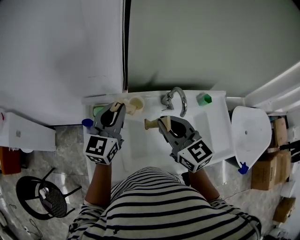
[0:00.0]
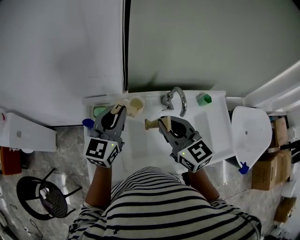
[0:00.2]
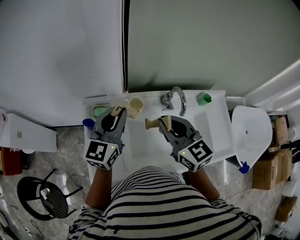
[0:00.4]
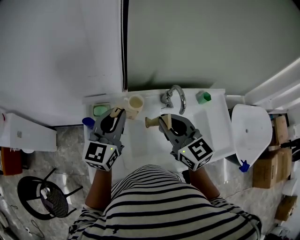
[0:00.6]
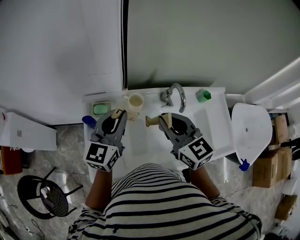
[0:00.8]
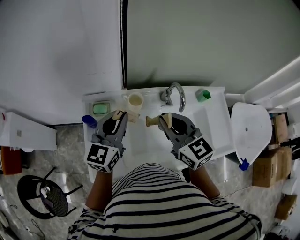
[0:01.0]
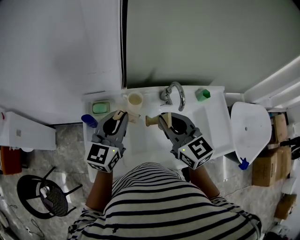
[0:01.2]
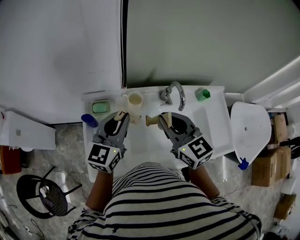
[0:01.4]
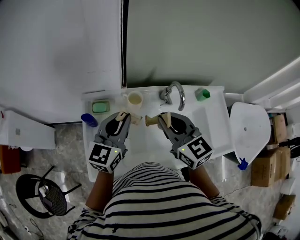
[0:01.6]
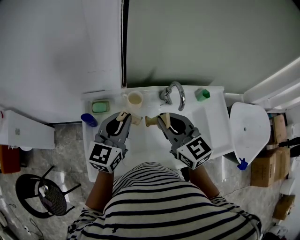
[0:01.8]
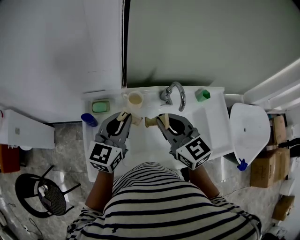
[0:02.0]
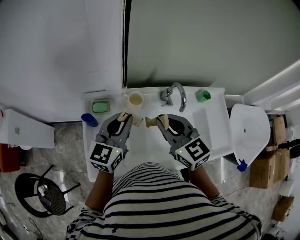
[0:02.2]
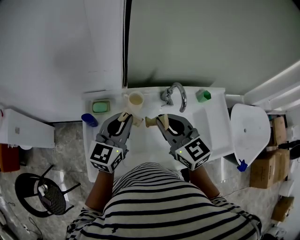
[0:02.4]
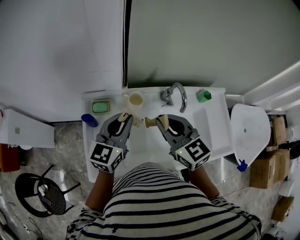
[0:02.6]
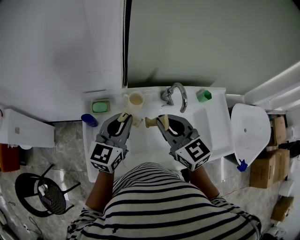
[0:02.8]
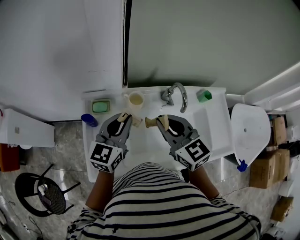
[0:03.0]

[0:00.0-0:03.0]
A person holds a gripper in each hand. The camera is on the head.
0:00.0 to 0:01.6: The left gripper is displaced backward by about 5 cm.
0:01.6 to 0:03.0: The grippers stay close to where they were, moving slightly.

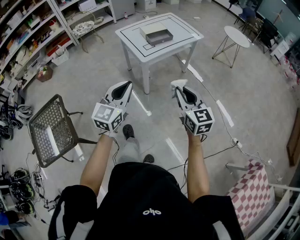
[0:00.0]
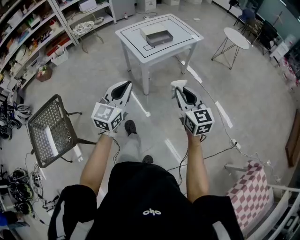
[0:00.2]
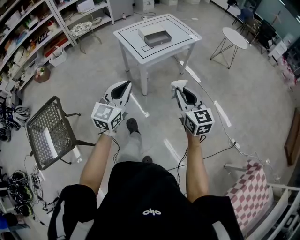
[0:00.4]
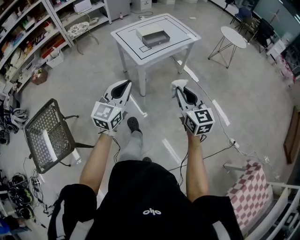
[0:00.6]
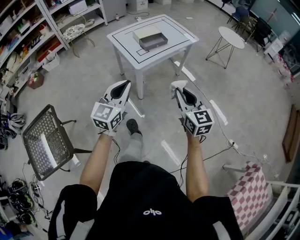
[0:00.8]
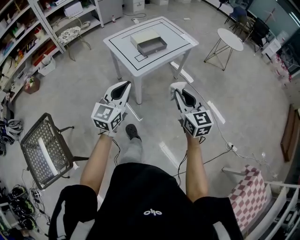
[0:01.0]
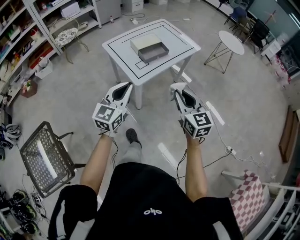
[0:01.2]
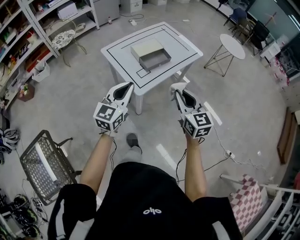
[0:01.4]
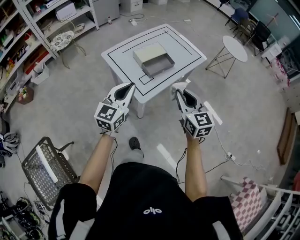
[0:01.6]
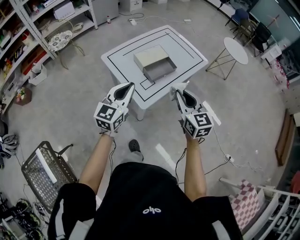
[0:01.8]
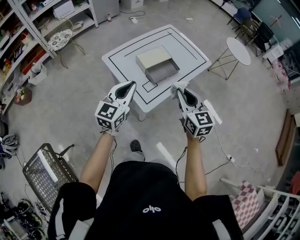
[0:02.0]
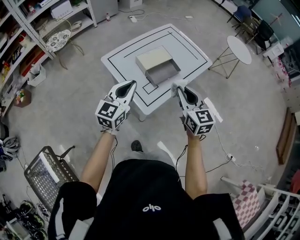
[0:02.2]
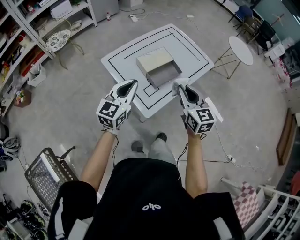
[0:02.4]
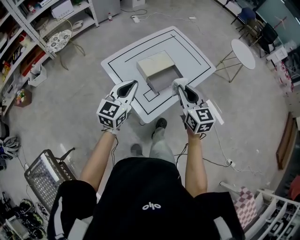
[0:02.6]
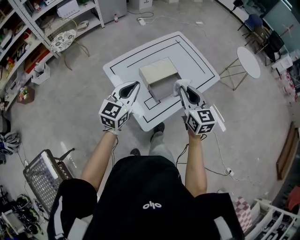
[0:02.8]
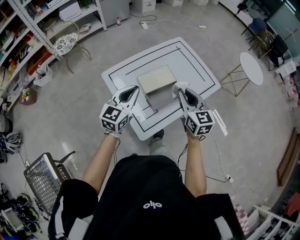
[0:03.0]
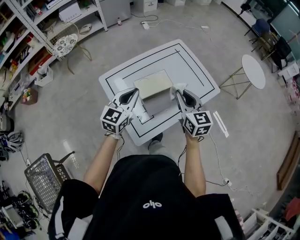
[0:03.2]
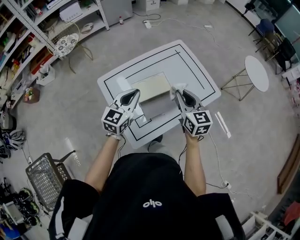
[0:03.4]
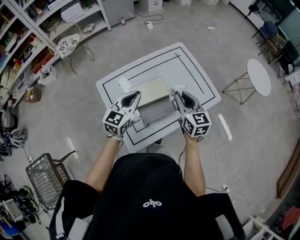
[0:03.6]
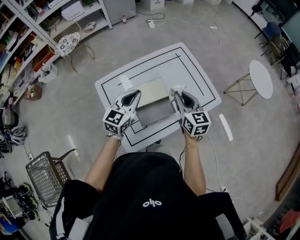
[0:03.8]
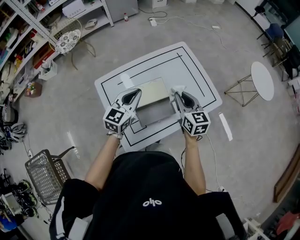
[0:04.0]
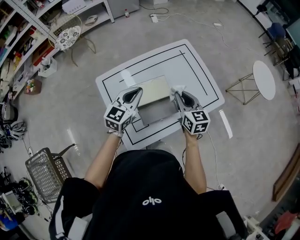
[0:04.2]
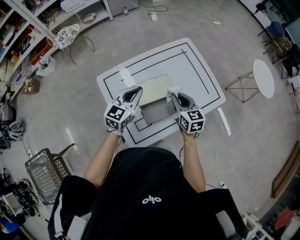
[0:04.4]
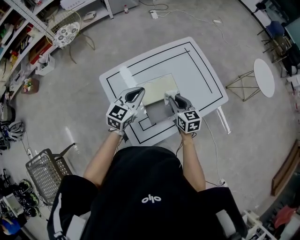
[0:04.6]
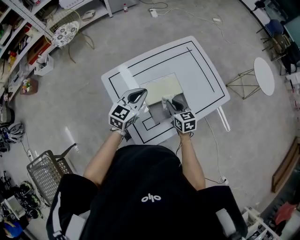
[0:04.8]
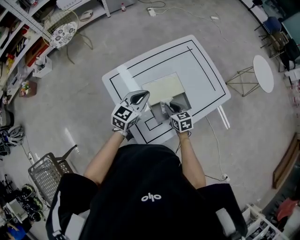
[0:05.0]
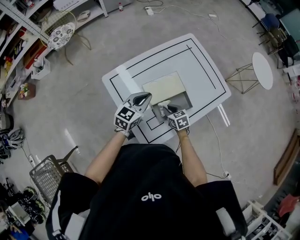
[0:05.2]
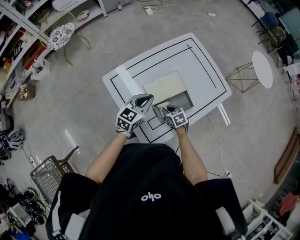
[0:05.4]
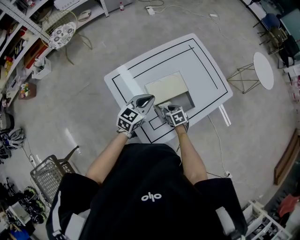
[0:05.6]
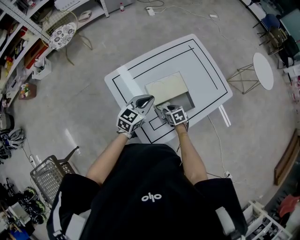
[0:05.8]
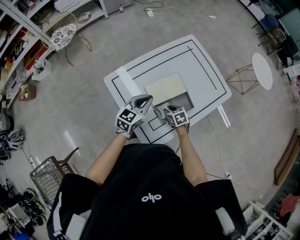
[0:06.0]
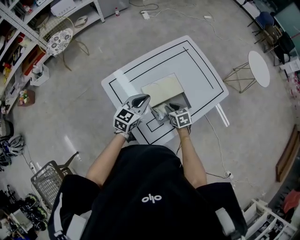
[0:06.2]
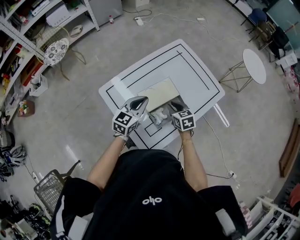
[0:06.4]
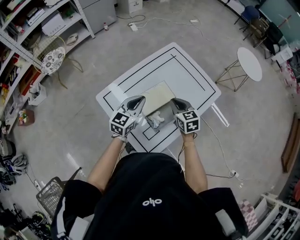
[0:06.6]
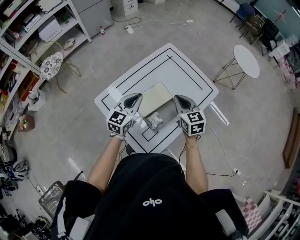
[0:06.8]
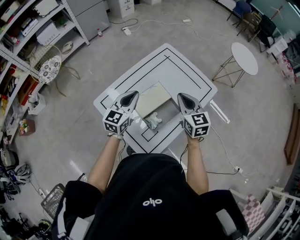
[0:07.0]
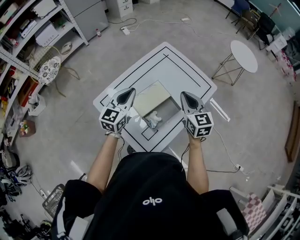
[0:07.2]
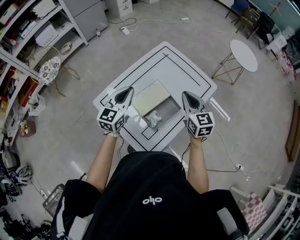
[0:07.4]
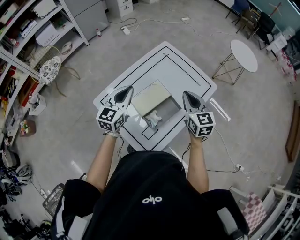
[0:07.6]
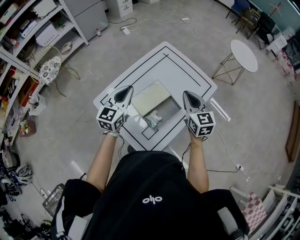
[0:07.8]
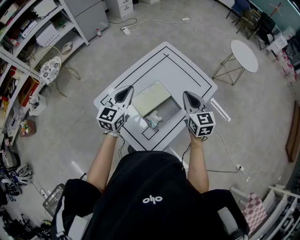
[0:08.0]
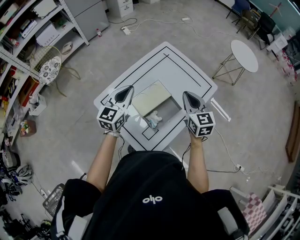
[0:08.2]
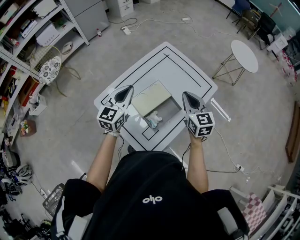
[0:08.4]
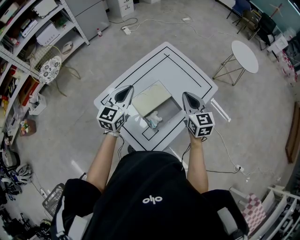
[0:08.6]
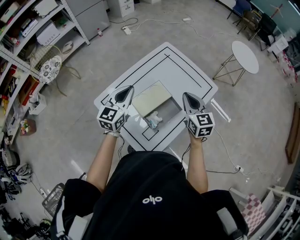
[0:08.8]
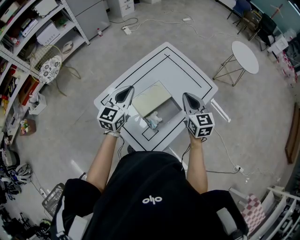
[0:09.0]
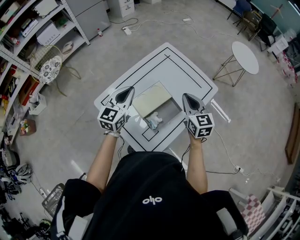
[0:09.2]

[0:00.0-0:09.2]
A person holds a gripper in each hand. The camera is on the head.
0:00.0 to 0:01.6: The grippers both shift forward by some 40 cm.
0:01.6 to 0:03.0: Both grippers move forward, roughly 30 cm.
0:03.0 to 0:04.6: The right gripper is displaced downward and forward by about 20 cm. Meanwhile the left gripper goes about 15 cm forward and downward.
0:04.6 to 0:06.2: The left gripper ends up roughly 5 cm from where it was. The right gripper heads downward, covering approximately 10 cm, and rotates roughly 20 degrees.
0:06.2 to 0:07.6: The right gripper shifts about 30 cm upward and to the right, tilts its fingers some 30 degrees upward, and closes, while the left gripper heads upward, covering roughly 10 cm.
0:07.6 to 0:09.2: The grippers stay close to where they were, moving slightly.

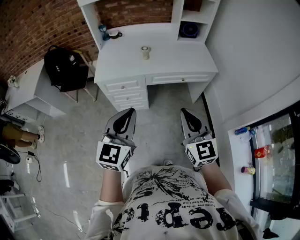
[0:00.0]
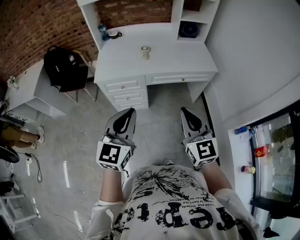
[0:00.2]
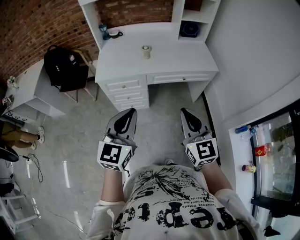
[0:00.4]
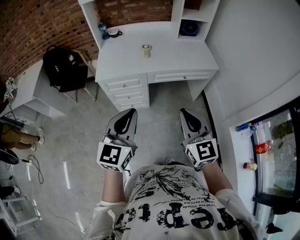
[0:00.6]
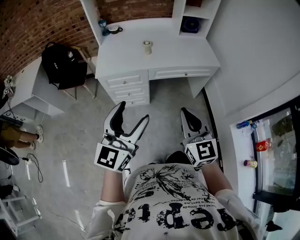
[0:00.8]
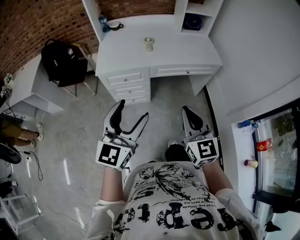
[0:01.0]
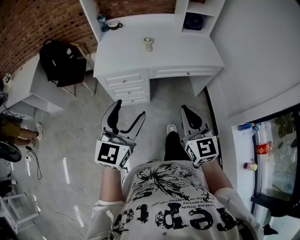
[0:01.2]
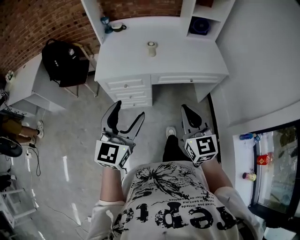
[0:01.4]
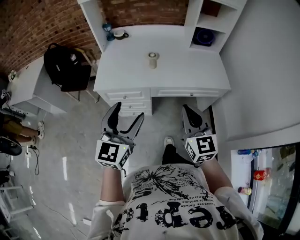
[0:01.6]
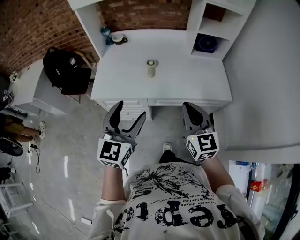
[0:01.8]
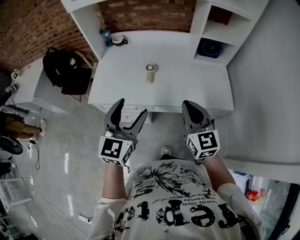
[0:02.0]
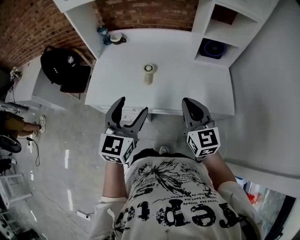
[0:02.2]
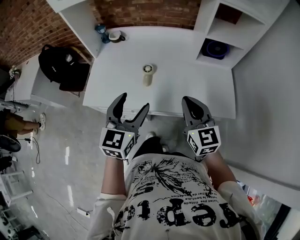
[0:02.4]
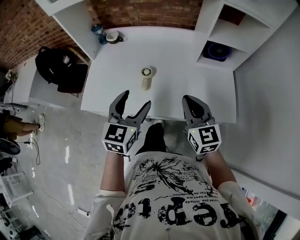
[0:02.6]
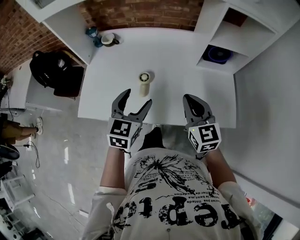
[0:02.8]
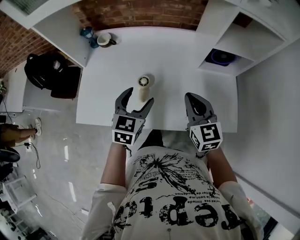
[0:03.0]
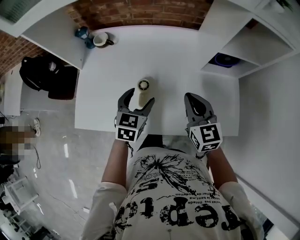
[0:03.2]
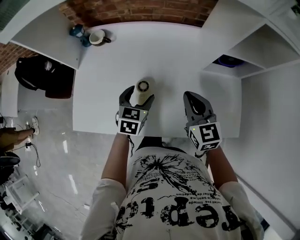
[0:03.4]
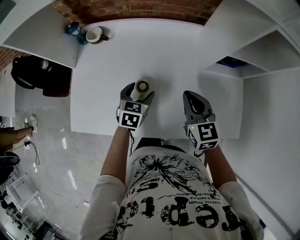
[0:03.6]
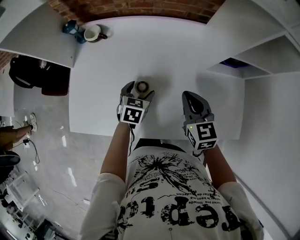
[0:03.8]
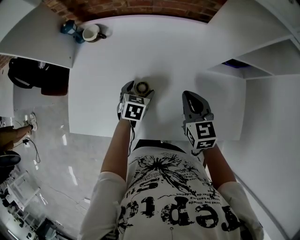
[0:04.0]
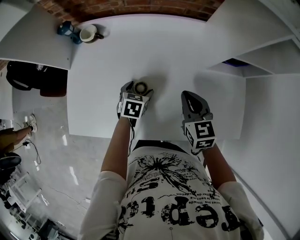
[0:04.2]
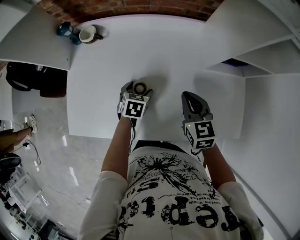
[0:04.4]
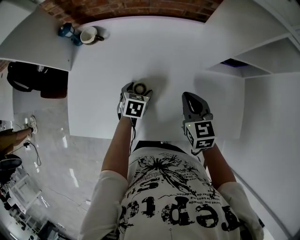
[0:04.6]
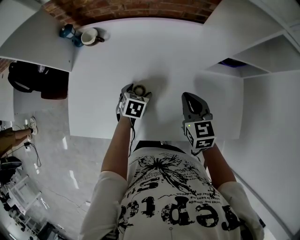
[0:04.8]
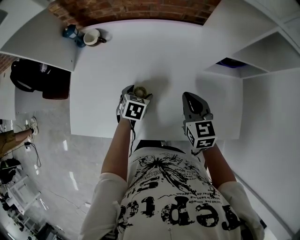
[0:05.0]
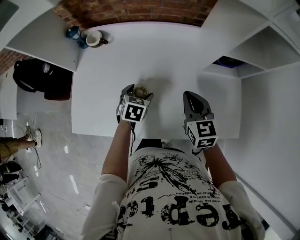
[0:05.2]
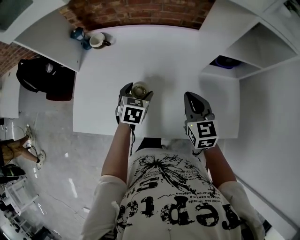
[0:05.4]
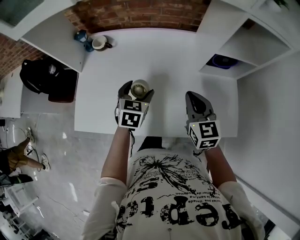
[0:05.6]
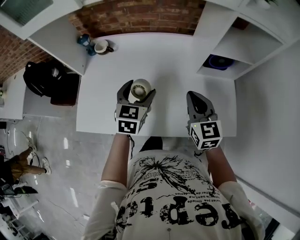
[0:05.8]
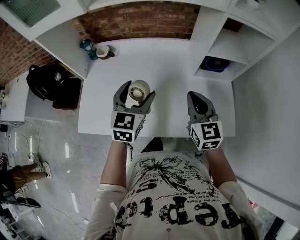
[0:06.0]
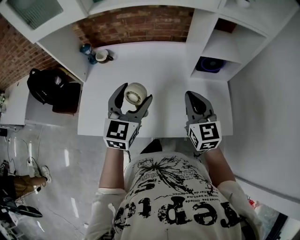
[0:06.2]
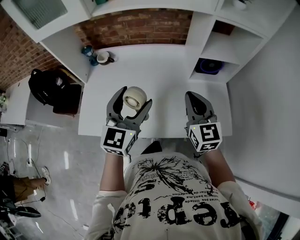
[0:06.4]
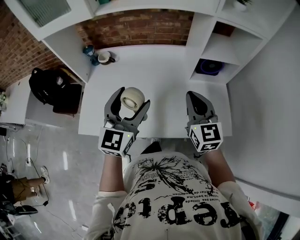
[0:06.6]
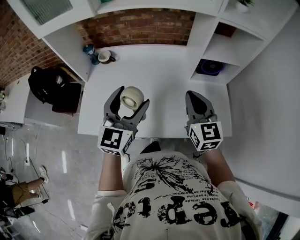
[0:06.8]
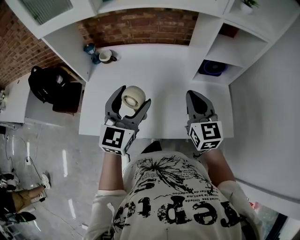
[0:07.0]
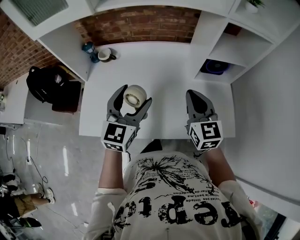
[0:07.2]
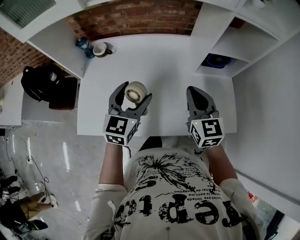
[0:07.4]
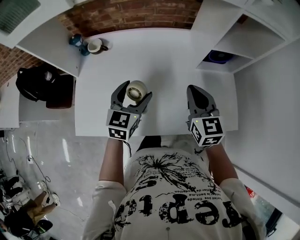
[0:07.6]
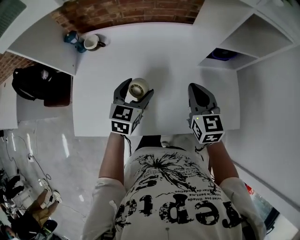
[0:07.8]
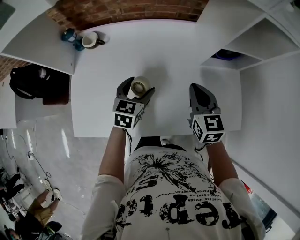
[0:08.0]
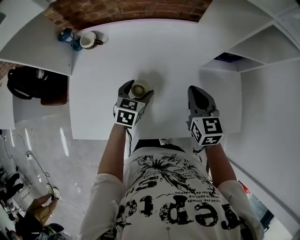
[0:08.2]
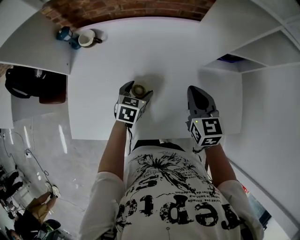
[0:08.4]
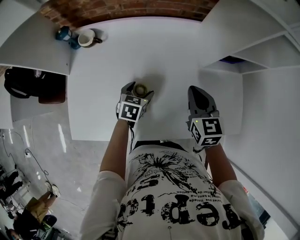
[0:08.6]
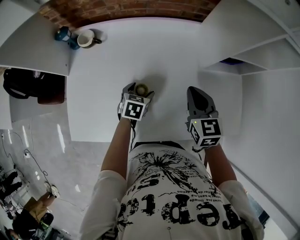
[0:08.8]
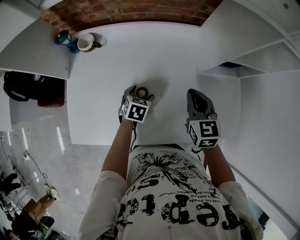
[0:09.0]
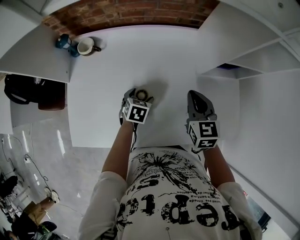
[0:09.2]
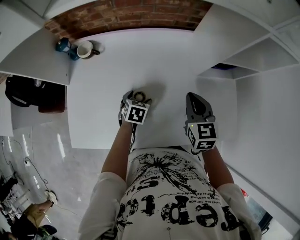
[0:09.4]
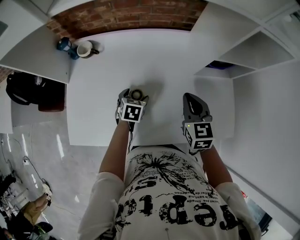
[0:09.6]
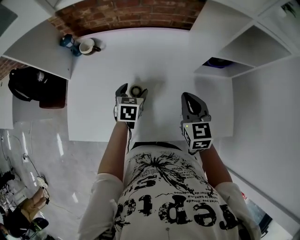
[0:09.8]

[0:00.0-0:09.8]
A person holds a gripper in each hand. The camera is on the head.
0:00.0 to 0:01.4: The right gripper is displaced forward and downward by some 10 cm. The left gripper heads forward, covering about 10 cm, and opens up.
0:01.4 to 0:02.8: The two grippers travel together, forward, about 50 cm.
0:02.8 to 0:04.2: The left gripper heads downward and forward, covering some 35 cm, and angles its fingers downward, by about 30 degrees, while the right gripper is displaced forward and downward by some 25 cm.
0:04.2 to 0:05.6: The left gripper goes roughly 15 cm upward; the right gripper travels upward and backward by some 10 cm.
0:05.6 to 0:07.0: The left gripper shifts about 20 cm upward and backward, and points its fingers approximately 30 degrees further upward. The right gripper travels upward and backward by roughly 10 cm.
0:07.0 to 0:08.4: The left gripper is displaced downward and forward by approximately 35 cm, and angles its fingers downward, by approximately 40 degrees, while the right gripper is displaced downward and forward by roughly 20 cm.
0:08.4 to 0:09.8: The grippers move only a little.

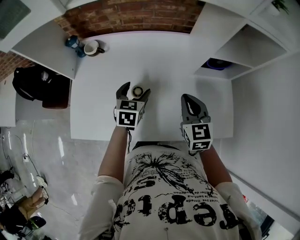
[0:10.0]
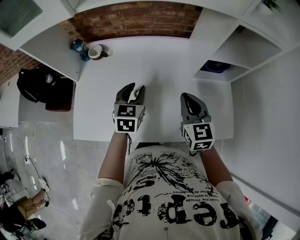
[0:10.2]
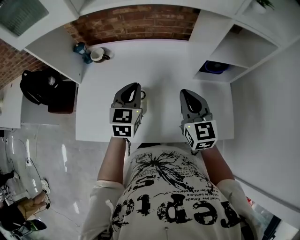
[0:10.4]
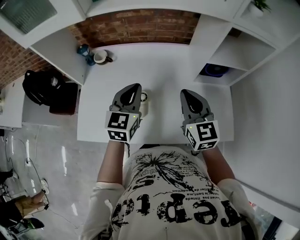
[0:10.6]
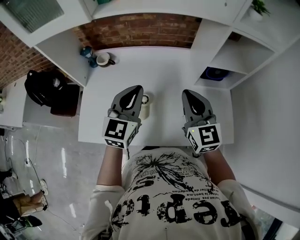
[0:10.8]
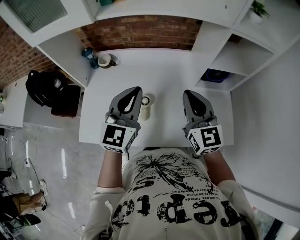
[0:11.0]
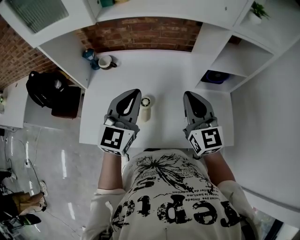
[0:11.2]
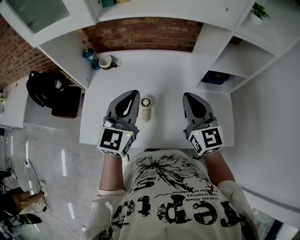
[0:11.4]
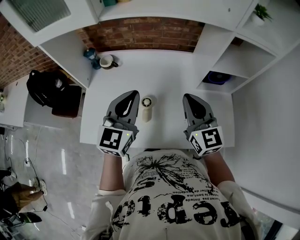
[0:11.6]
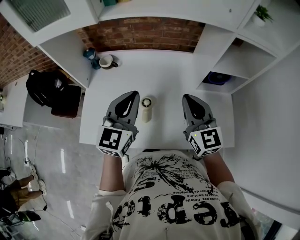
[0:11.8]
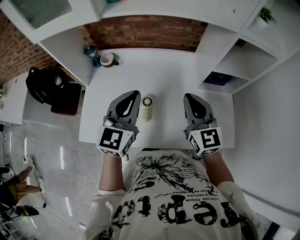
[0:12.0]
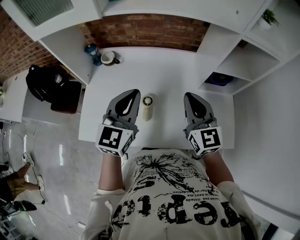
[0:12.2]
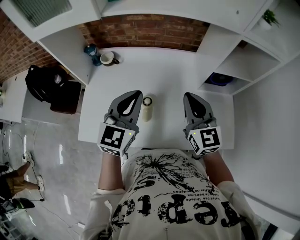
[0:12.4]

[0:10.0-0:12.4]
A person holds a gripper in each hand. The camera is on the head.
0:10.0 to 0:11.2: The right gripper is displaced upward by about 15 cm, and swivels some 20 degrees. The left gripper heads upward, covering approximately 25 cm, tilts its fingers roughly 30 degrees upward, and closes up.
0:11.2 to 0:12.4: The grippers move only a little.
